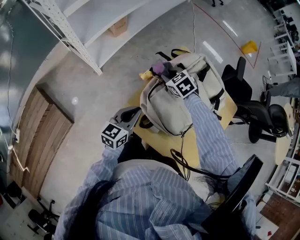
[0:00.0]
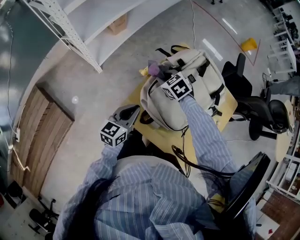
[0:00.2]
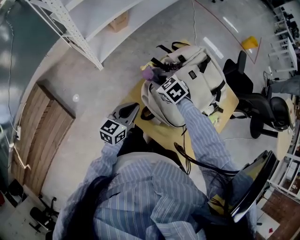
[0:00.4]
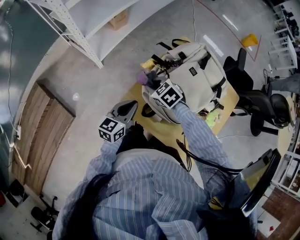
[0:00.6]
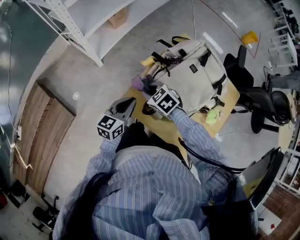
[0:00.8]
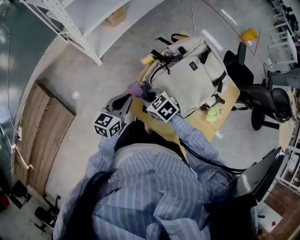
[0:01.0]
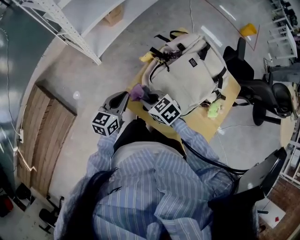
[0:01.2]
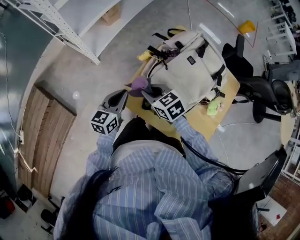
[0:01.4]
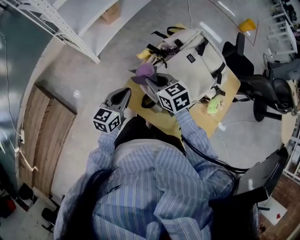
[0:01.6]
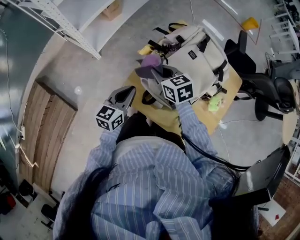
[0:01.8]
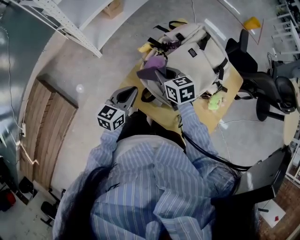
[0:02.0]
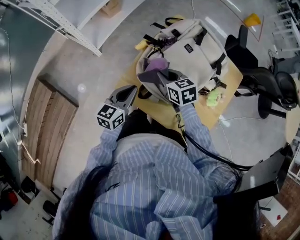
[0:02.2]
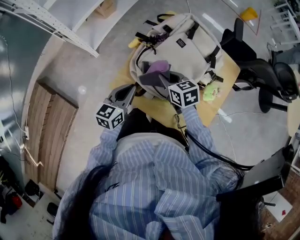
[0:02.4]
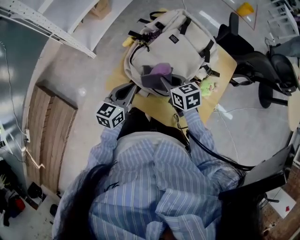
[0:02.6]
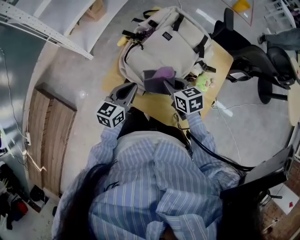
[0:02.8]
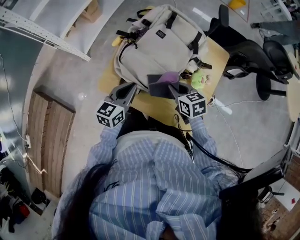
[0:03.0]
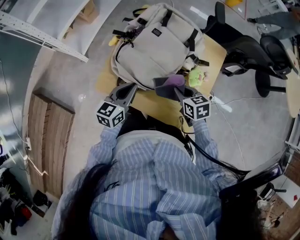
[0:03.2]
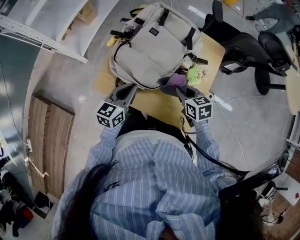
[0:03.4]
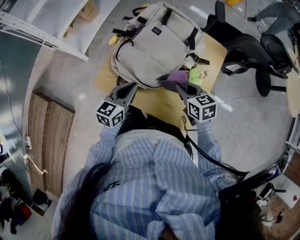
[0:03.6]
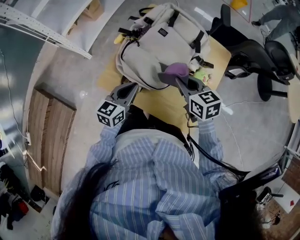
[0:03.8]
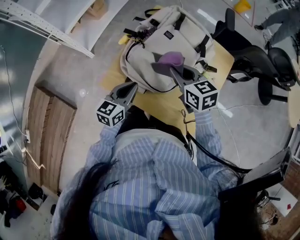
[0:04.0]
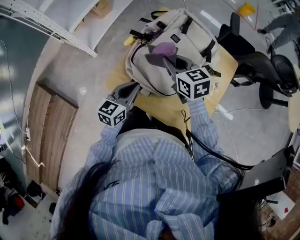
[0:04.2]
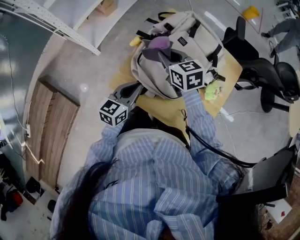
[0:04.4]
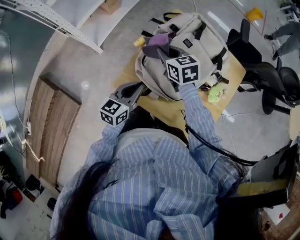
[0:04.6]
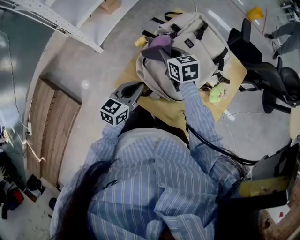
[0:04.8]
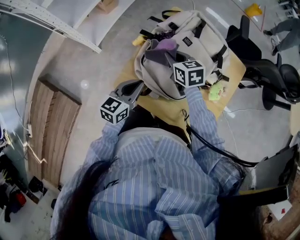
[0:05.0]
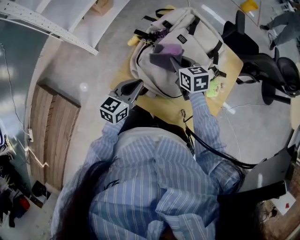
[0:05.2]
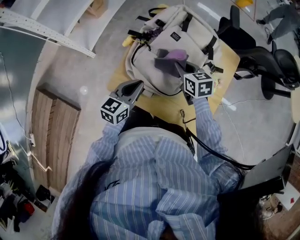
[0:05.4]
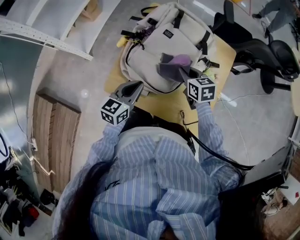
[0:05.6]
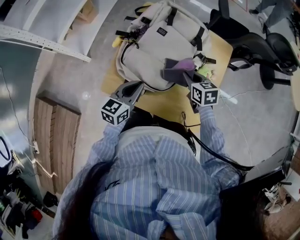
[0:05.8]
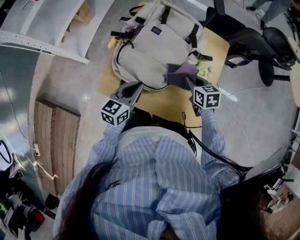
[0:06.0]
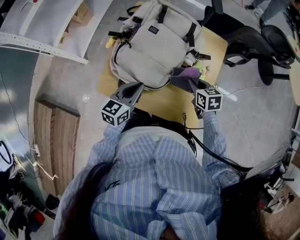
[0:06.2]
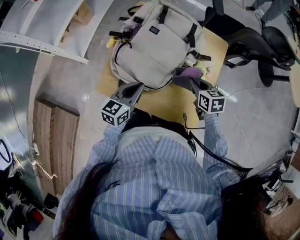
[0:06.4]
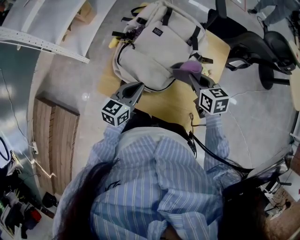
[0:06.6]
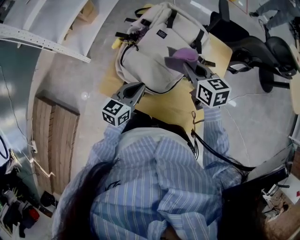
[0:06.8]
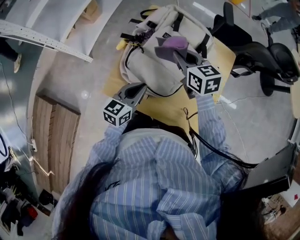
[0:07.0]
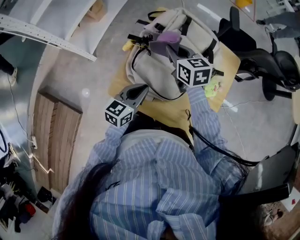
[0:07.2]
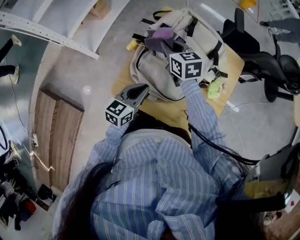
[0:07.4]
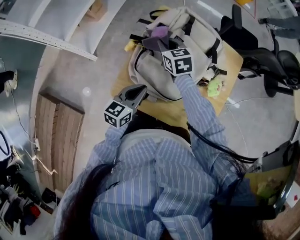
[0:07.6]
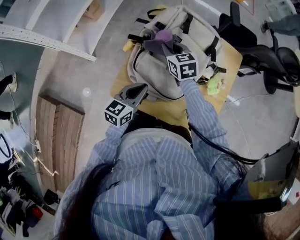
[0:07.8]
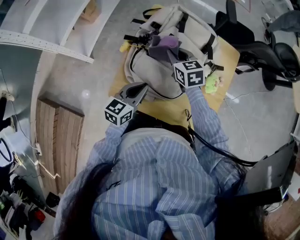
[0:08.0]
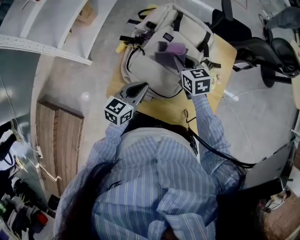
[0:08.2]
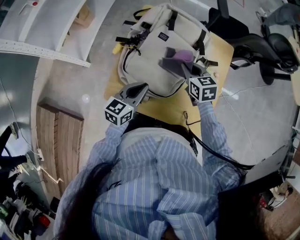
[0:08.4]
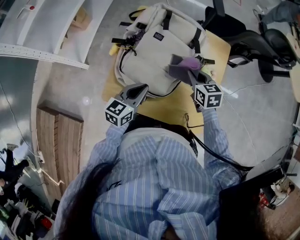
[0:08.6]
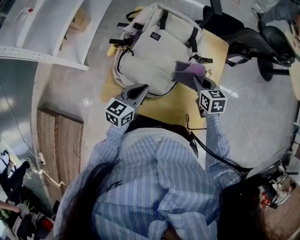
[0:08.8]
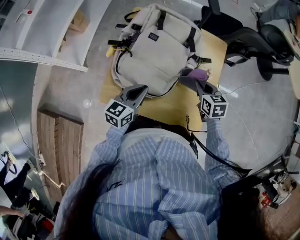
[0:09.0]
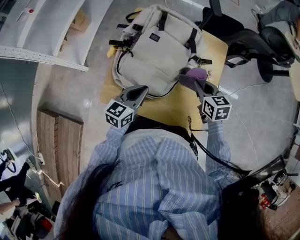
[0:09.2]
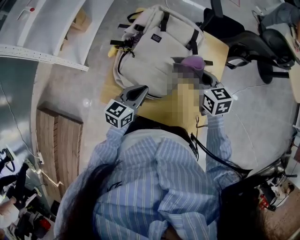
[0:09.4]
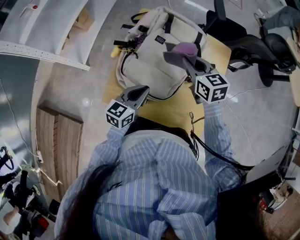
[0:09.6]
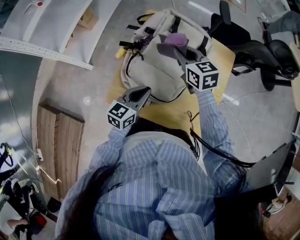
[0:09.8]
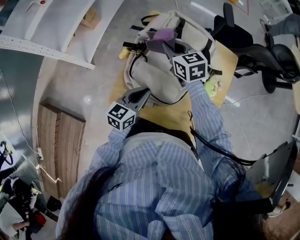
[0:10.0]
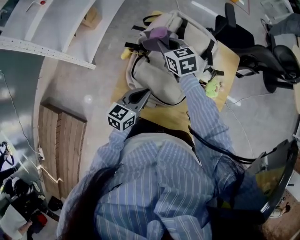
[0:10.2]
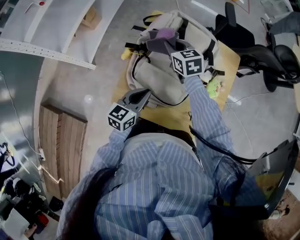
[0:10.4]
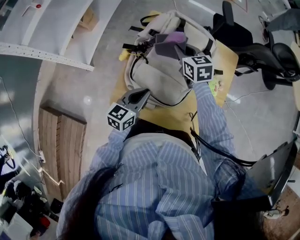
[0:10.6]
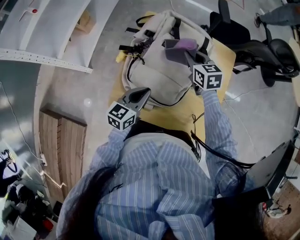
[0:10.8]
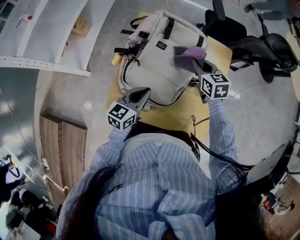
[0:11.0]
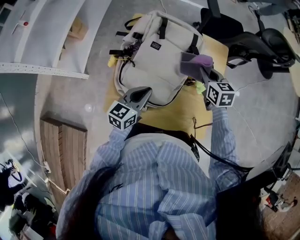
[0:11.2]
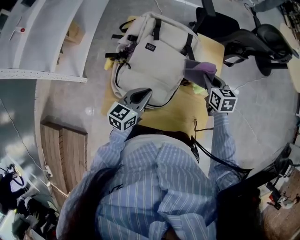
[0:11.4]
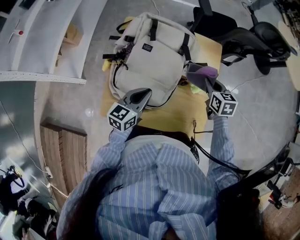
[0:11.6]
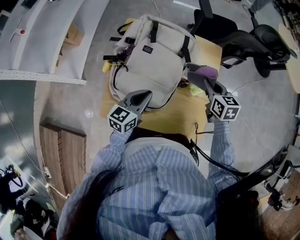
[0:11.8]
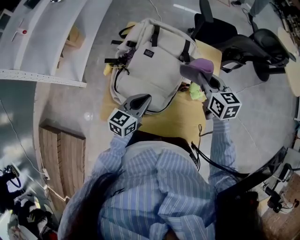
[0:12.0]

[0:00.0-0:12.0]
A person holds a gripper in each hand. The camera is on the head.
0.0 to 1.6 s: The right gripper is displaced backward and to the left by about 15 cm, and swivels about 30 degrees.
1.6 to 3.0 s: The right gripper heads to the right and backward, covering about 25 cm, and turns by some 20 degrees. The left gripper shifts roughly 15 cm to the right and backward.
3.0 to 4.4 s: The right gripper is displaced to the left, forward and upward by about 25 cm. Meanwhile the left gripper shifts roughly 5 cm to the left.
4.4 to 6.0 s: The right gripper travels to the right and backward by about 25 cm, and swivels approximately 30 degrees, while the left gripper goes about 10 cm to the right.
6.0 to 7.6 s: The right gripper travels to the left and forward by some 30 cm; the left gripper is displaced to the left by some 5 cm.
7.6 to 9.0 s: The right gripper moves to the right and backward, roughly 35 cm, and changes its angle by roughly 20 degrees. Meanwhile the left gripper is displaced to the right by approximately 10 cm.
9.0 to 10.4 s: The left gripper moves to the left, roughly 5 cm, while the right gripper is displaced to the left and forward by some 30 cm, and changes its angle by approximately 20 degrees.
10.4 to 12.0 s: The left gripper heads to the right, covering approximately 10 cm, while the right gripper travels to the right by roughly 25 cm.

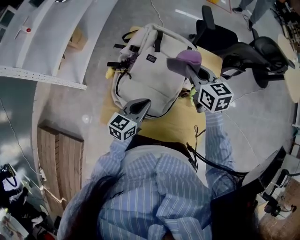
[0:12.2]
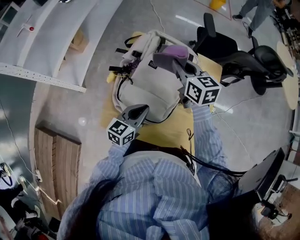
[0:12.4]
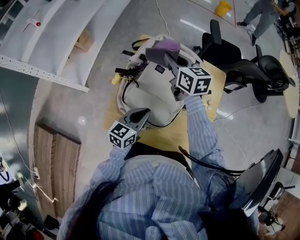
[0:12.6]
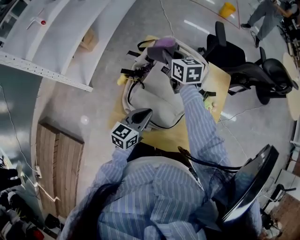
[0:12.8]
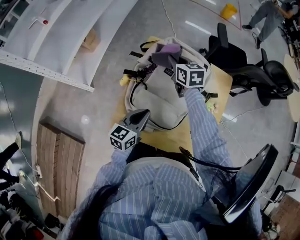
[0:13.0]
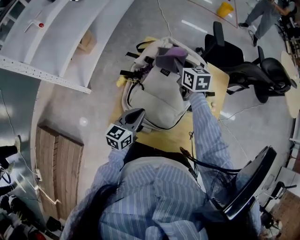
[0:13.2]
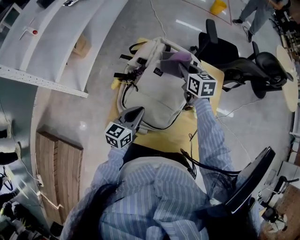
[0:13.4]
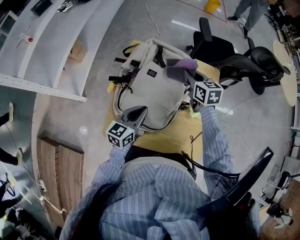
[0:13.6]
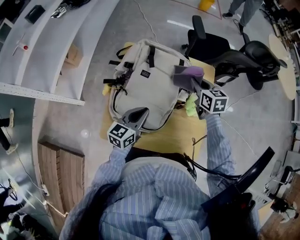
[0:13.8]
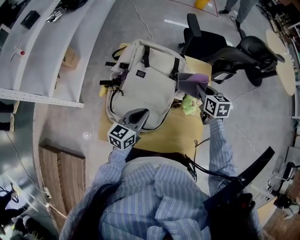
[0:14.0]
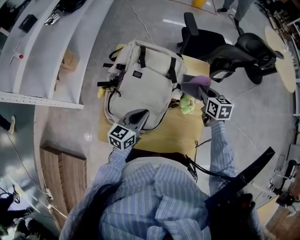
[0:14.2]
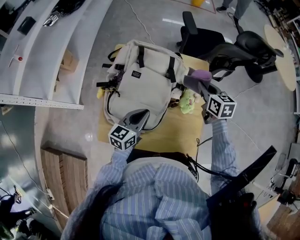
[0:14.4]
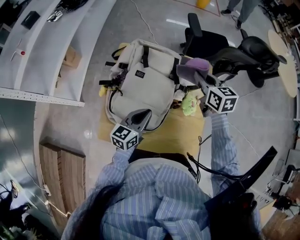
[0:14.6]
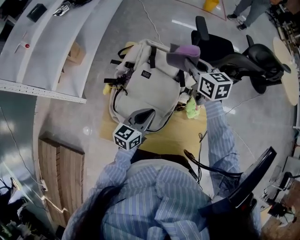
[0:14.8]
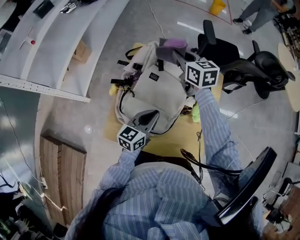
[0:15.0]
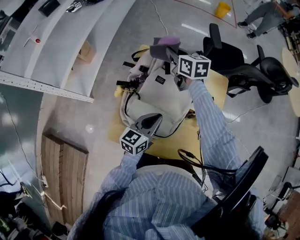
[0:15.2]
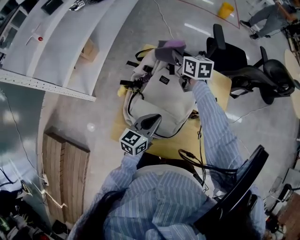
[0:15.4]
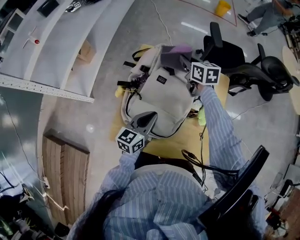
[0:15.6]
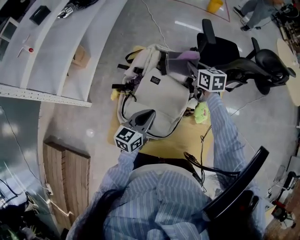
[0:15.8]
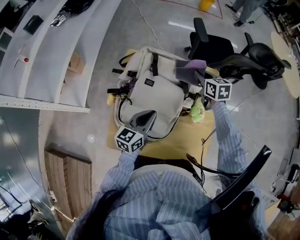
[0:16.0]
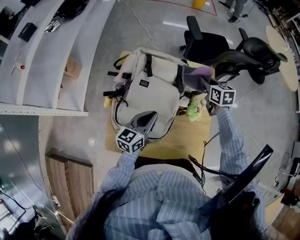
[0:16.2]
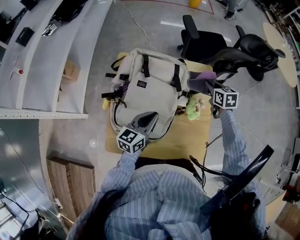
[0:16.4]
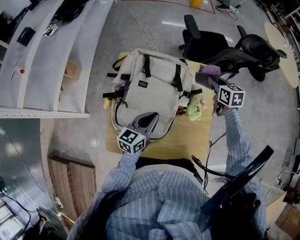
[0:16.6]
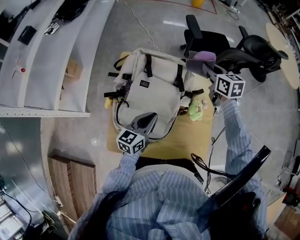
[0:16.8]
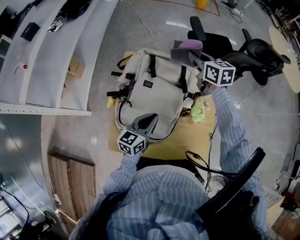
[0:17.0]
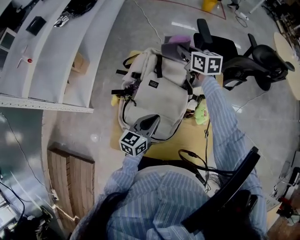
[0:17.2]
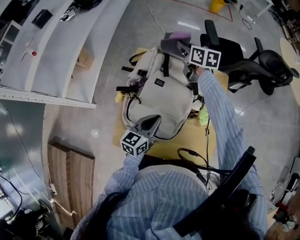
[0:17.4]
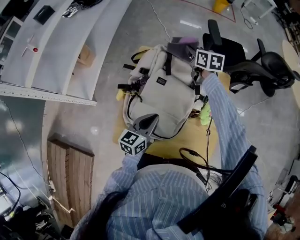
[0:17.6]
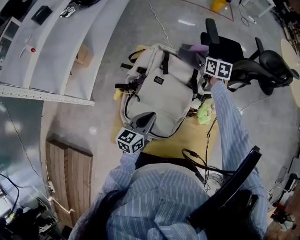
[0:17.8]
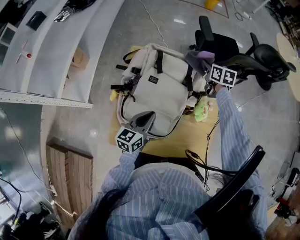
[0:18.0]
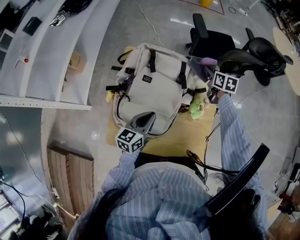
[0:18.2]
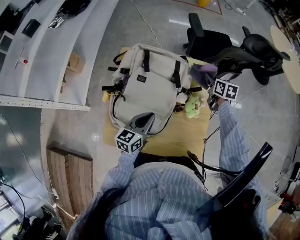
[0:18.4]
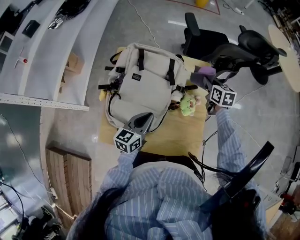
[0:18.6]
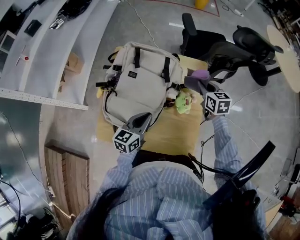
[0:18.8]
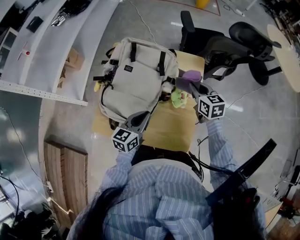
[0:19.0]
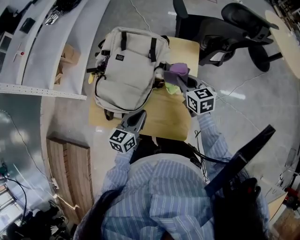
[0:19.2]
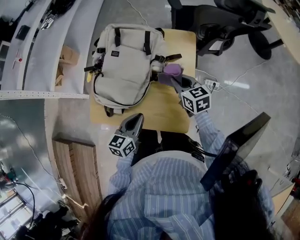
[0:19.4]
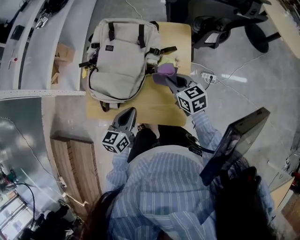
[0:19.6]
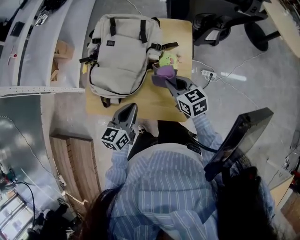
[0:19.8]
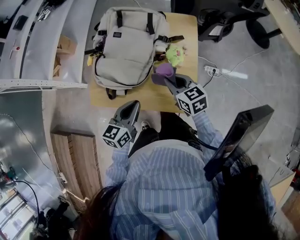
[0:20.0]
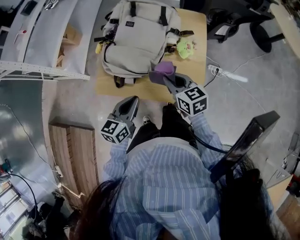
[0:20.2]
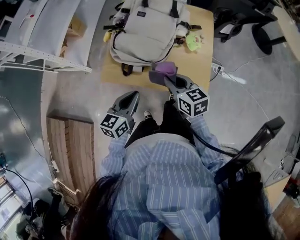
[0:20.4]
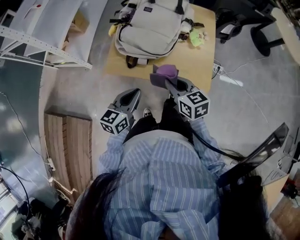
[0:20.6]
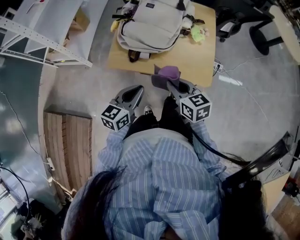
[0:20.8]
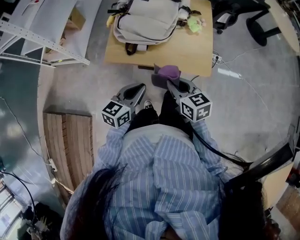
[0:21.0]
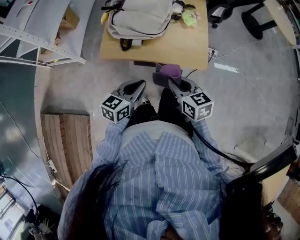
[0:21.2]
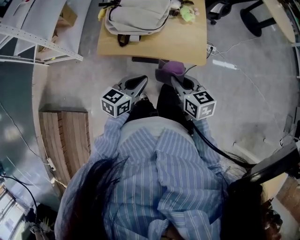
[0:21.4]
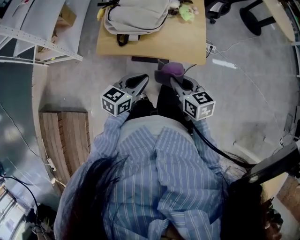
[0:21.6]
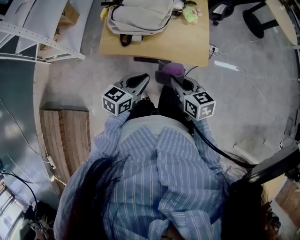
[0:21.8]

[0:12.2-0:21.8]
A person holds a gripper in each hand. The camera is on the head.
12.2 to 13.8 s: The right gripper heads downward, covering roughly 5 cm, and travels to the left and back again, approximately 15 cm each way; the left gripper reaches some 10 cm to the left, then returns.
13.8 to 15.4 s: The right gripper travels to the left and forward by roughly 25 cm.
15.4 to 17.0 s: The right gripper travels to the right by some 15 cm.
17.0 to 18.6 s: The right gripper shifts roughly 25 cm to the right, downward and backward, while the left gripper ends up roughly 5 cm from where it was.
18.6 to 20.2 s: The right gripper is displaced backward and to the left by approximately 35 cm, and rotates approximately 30 degrees, while the left gripper shifts about 20 cm backward.
20.2 to 21.8 s: The right gripper travels backward by about 25 cm; the left gripper moves backward, some 15 cm.

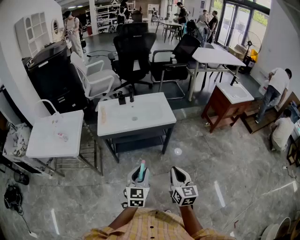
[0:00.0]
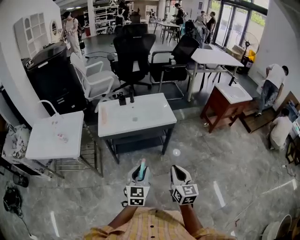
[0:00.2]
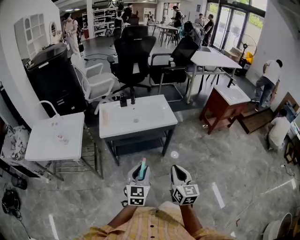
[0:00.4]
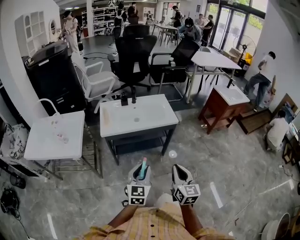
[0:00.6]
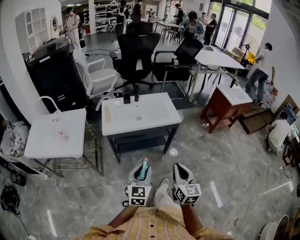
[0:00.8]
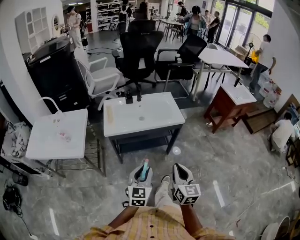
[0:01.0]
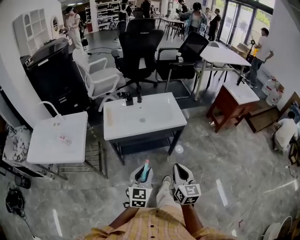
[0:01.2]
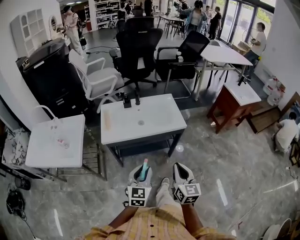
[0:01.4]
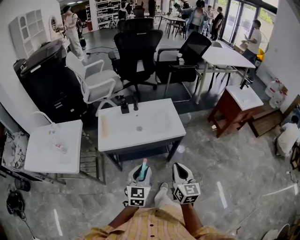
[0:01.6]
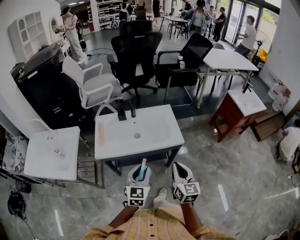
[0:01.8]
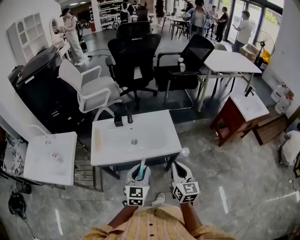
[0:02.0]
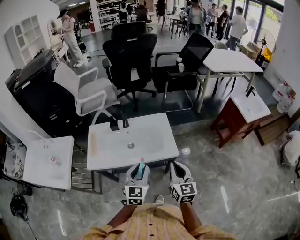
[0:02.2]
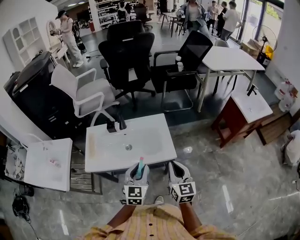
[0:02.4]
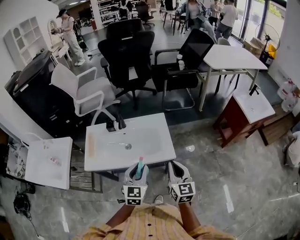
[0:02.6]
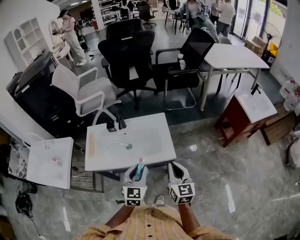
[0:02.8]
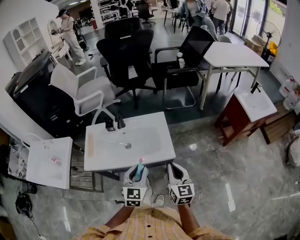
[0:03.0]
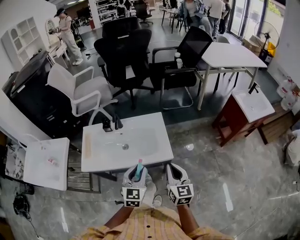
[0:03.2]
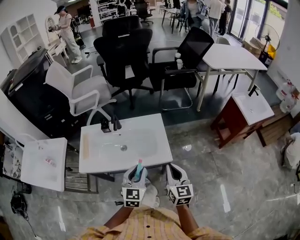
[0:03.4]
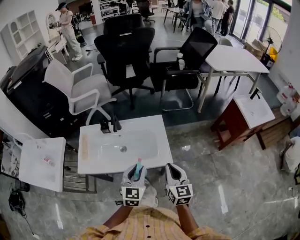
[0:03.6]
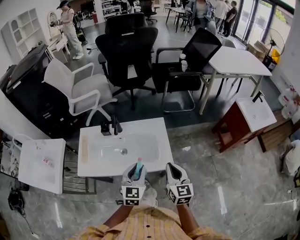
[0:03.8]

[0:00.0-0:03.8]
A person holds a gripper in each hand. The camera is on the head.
0.0 to 1.2 s: The two grippers go approximately 10 cm to the left and forward.
1.2 to 2.6 s: Both grippers move forward and to the right, some 35 cm.
2.6 to 3.8 s: Both grippers move forward, roughly 5 cm.
